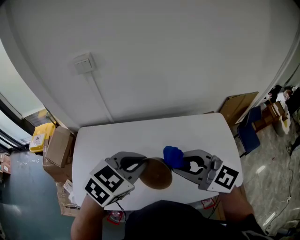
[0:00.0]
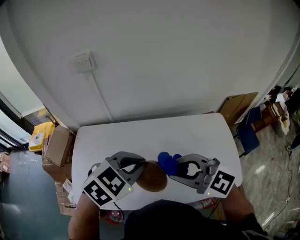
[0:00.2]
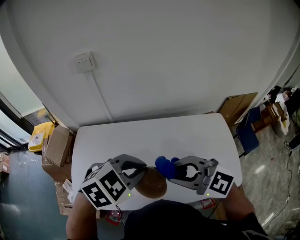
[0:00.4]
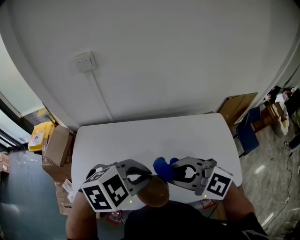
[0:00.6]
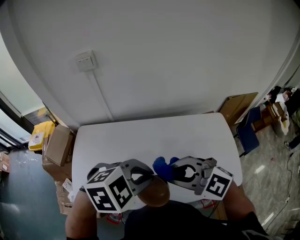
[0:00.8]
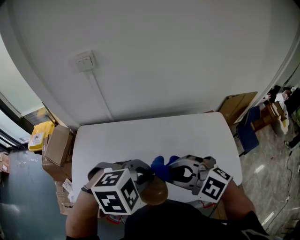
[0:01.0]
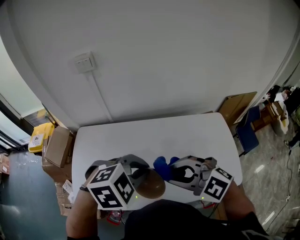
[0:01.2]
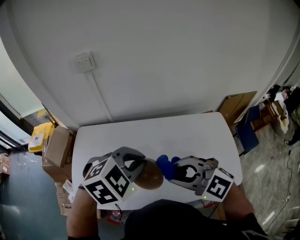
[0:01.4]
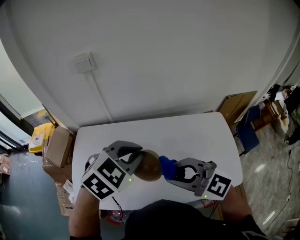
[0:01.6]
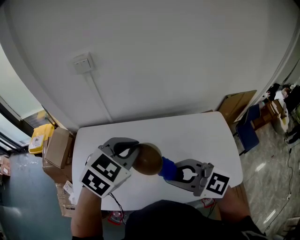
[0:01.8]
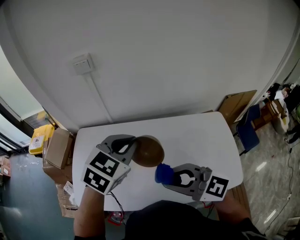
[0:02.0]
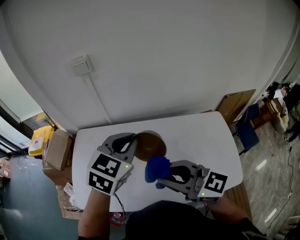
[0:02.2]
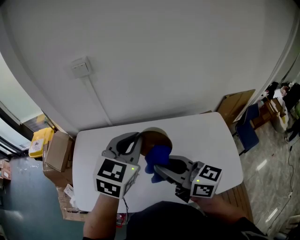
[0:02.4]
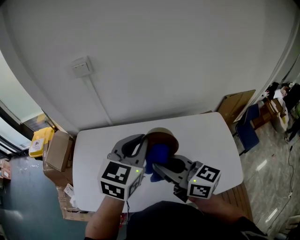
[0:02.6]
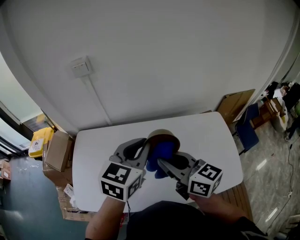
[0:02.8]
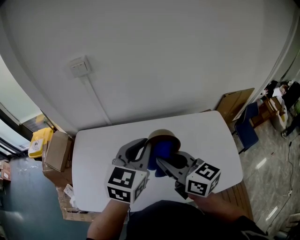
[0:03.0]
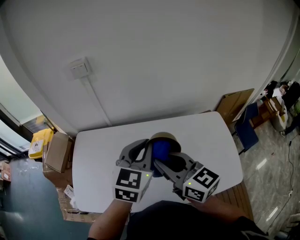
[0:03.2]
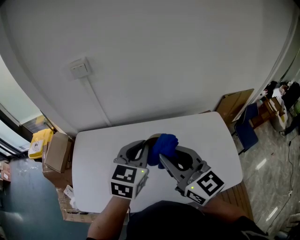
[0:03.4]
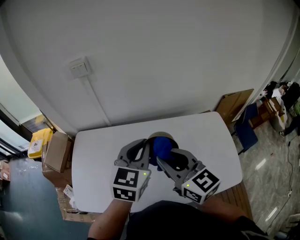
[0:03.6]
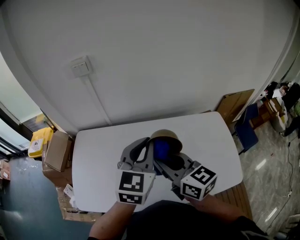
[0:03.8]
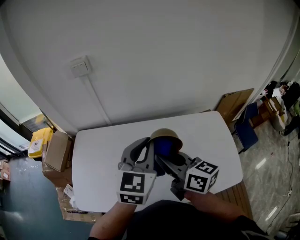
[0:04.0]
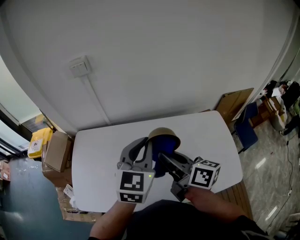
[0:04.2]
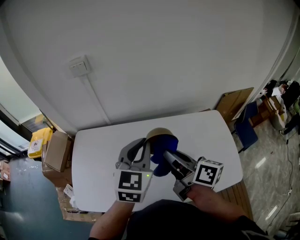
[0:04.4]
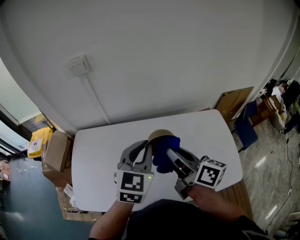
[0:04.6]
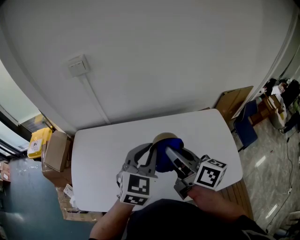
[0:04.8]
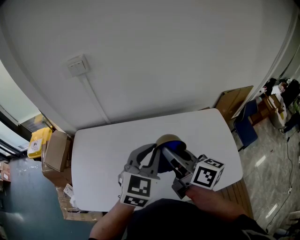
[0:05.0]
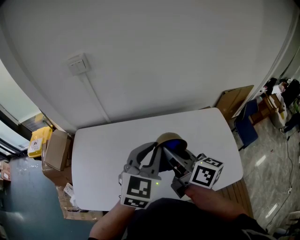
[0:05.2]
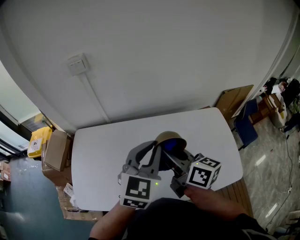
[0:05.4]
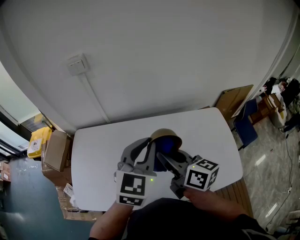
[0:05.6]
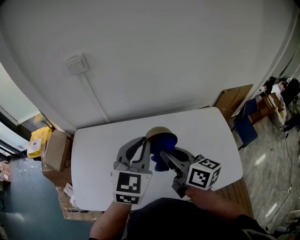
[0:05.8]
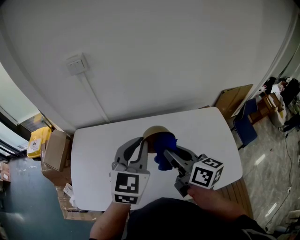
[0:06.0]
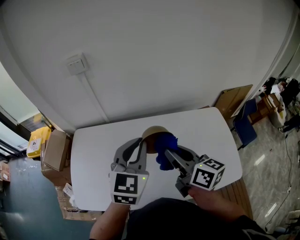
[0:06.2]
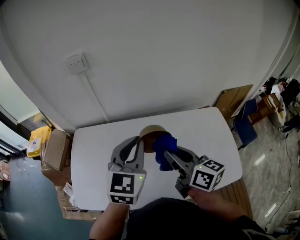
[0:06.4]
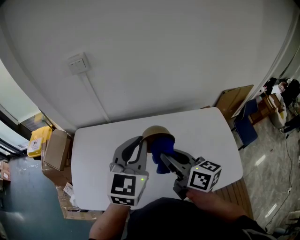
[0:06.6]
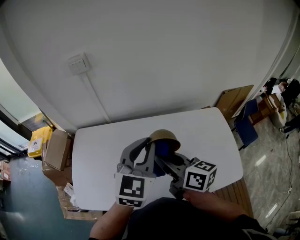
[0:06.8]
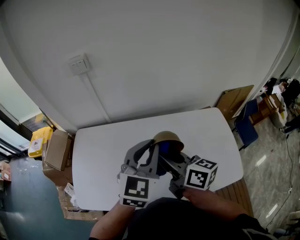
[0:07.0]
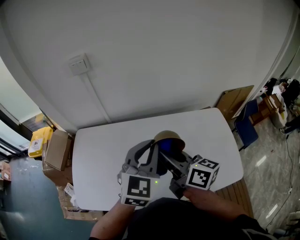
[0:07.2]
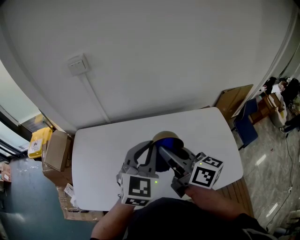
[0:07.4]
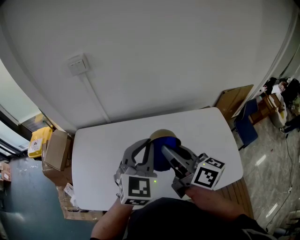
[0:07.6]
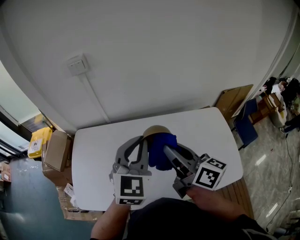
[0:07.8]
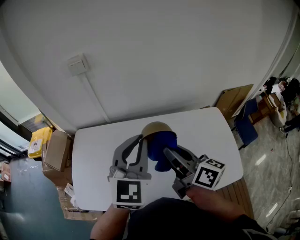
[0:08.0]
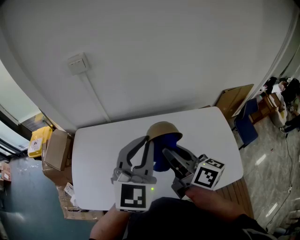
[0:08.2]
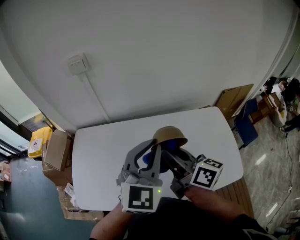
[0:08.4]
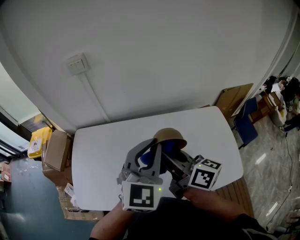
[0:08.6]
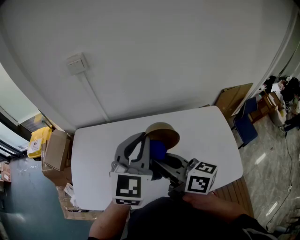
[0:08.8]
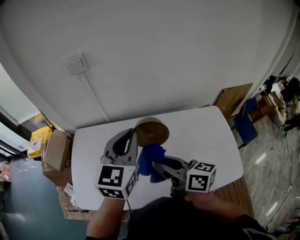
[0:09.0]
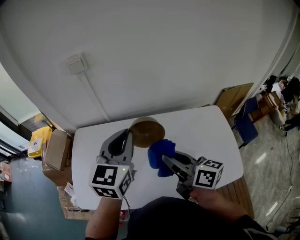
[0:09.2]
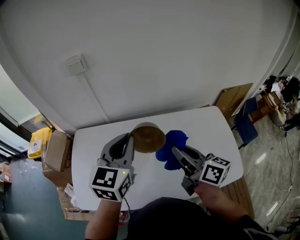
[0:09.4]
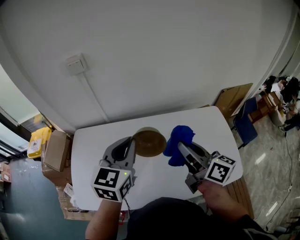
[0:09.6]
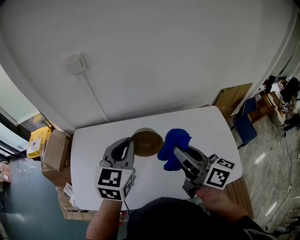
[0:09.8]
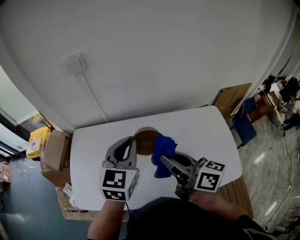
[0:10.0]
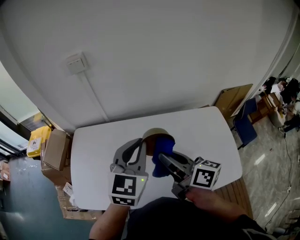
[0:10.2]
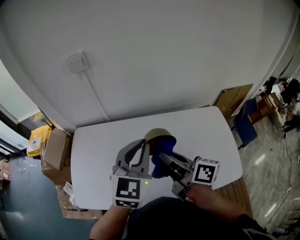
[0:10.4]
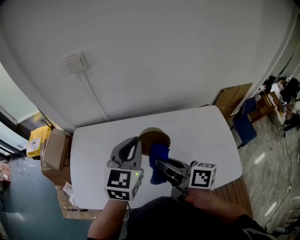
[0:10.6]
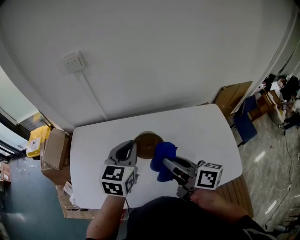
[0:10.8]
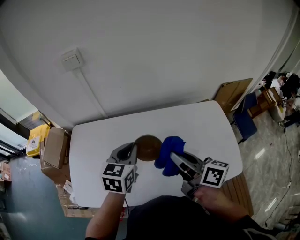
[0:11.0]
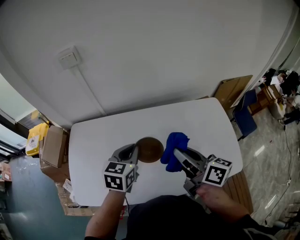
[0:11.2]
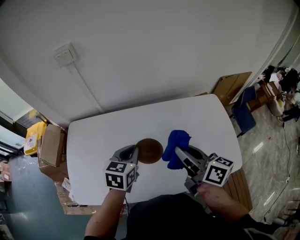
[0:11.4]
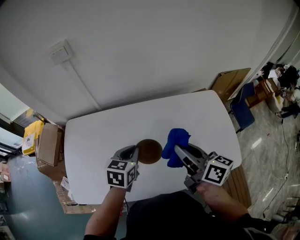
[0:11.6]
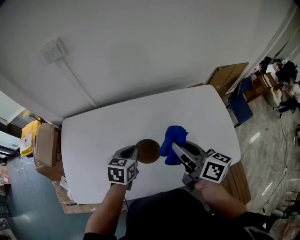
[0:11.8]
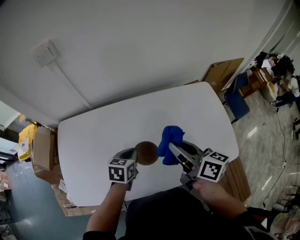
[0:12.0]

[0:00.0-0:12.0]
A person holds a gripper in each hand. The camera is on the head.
0:00.0 to 0:01.6: The right gripper changes place by roughly 5 cm.
0:01.6 to 0:03.0: The right gripper goes some 10 cm forward, and twists about 40 degrees clockwise, seen from behind, while the left gripper rotates some 40 degrees.
0:03.0 to 0:04.4: The right gripper turns by some 30 degrees.
0:04.4 to 0:07.6: There are only small adjustments of the grippers.
0:07.6 to 0:09.0: The right gripper shifts by roughly 5 cm; the left gripper changes place by roughly 5 cm.
0:09.0 to 0:10.4: The right gripper goes to the right and returns, roughly 10 cm each way.
0:10.4 to 0:12.0: The right gripper moves to the right and downward, roughly 10 cm. Meanwhile the left gripper shifts approximately 25 cm downward, and points its fingers approximately 30 degrees further downward.

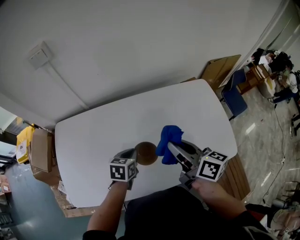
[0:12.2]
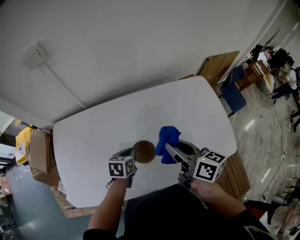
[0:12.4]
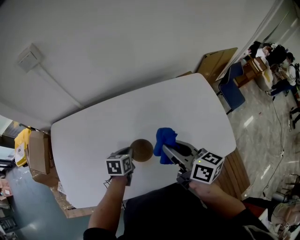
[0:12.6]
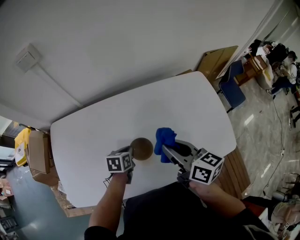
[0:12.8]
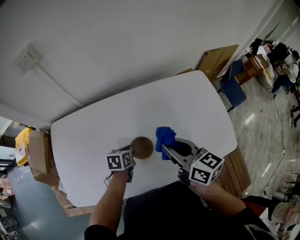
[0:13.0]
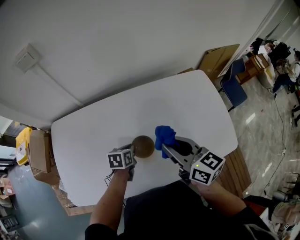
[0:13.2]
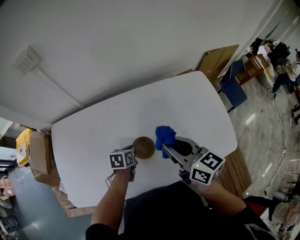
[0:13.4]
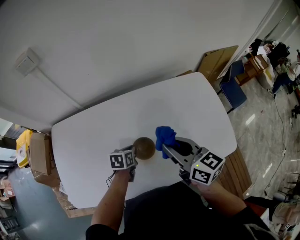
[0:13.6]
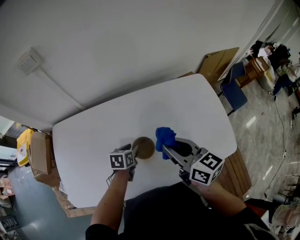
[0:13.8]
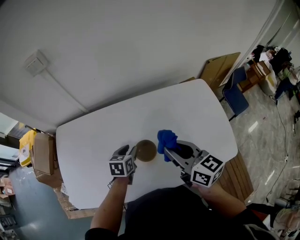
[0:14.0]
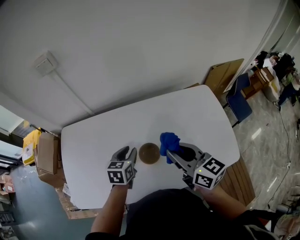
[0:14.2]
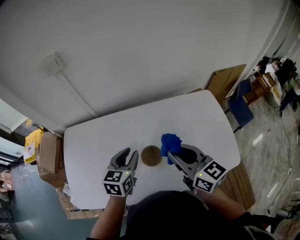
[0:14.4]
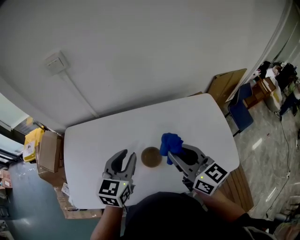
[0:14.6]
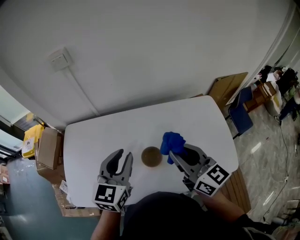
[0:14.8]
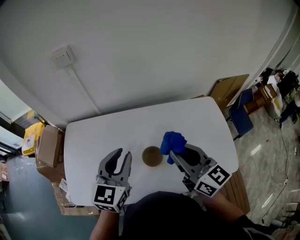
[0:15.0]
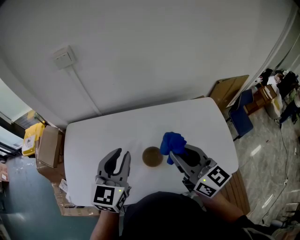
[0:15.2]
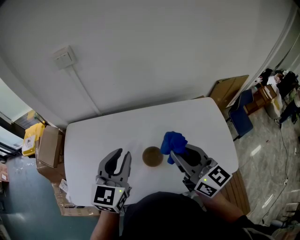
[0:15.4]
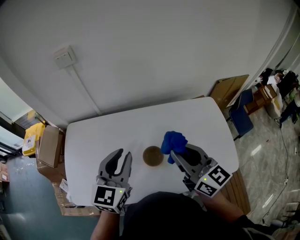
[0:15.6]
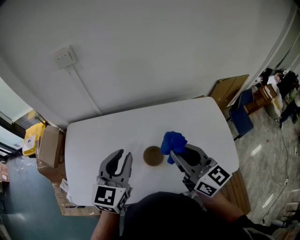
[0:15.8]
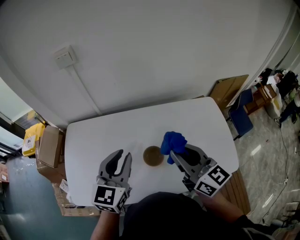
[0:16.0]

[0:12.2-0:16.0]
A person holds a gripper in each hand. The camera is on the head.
0:12.2 to 0:13.4: The left gripper moves downward, approximately 5 cm.
0:13.4 to 0:14.8: The left gripper heads upward, covering about 30 cm, angles its fingers upward, by some 40 degrees, and opens; the right gripper goes roughly 10 cm upward.
0:14.8 to 0:16.0: The grippers make only small movements.

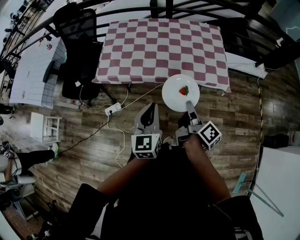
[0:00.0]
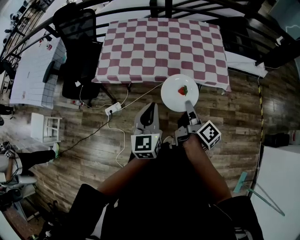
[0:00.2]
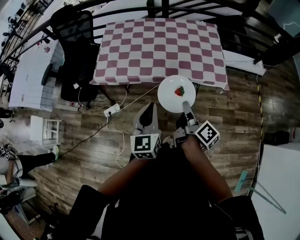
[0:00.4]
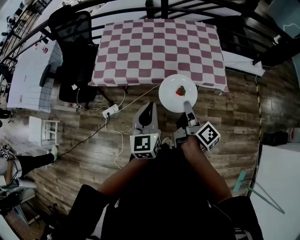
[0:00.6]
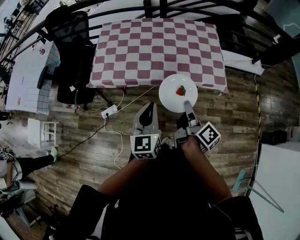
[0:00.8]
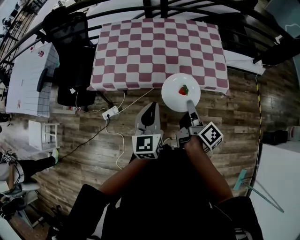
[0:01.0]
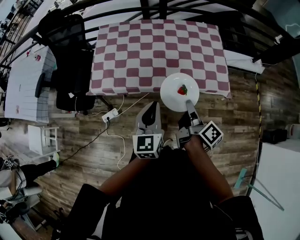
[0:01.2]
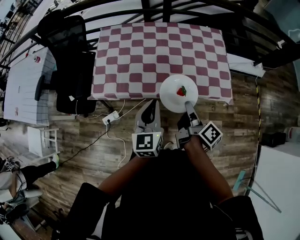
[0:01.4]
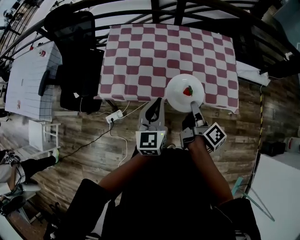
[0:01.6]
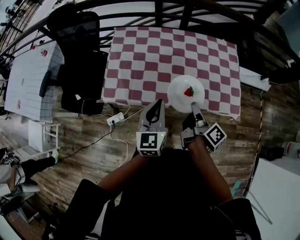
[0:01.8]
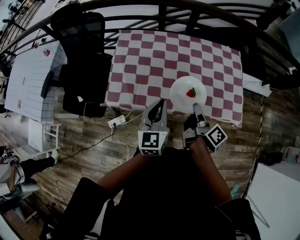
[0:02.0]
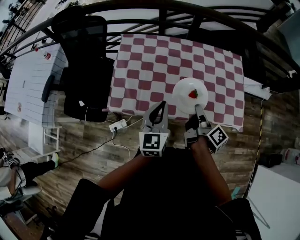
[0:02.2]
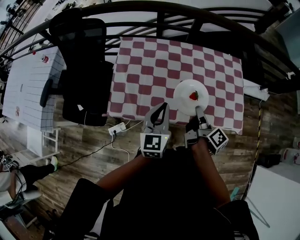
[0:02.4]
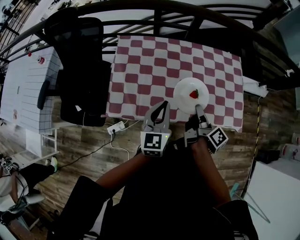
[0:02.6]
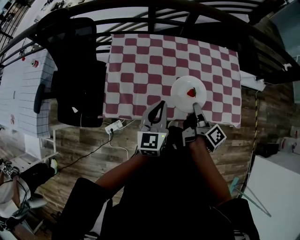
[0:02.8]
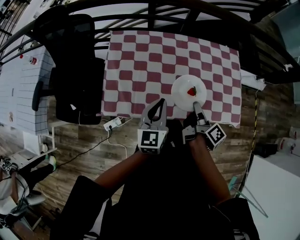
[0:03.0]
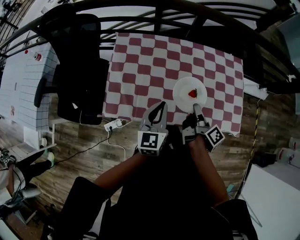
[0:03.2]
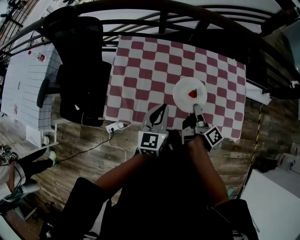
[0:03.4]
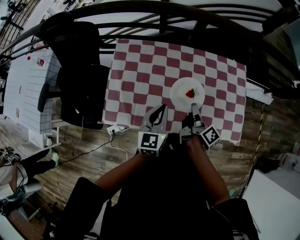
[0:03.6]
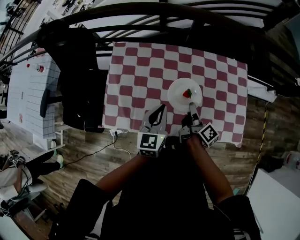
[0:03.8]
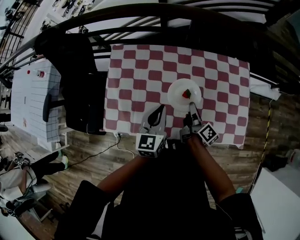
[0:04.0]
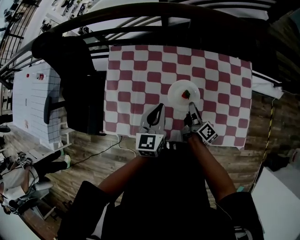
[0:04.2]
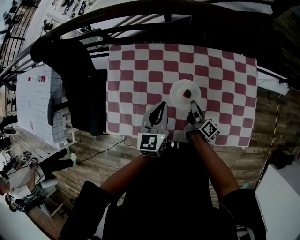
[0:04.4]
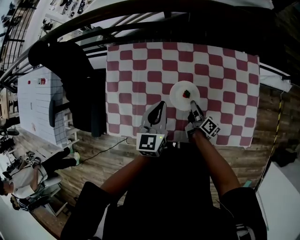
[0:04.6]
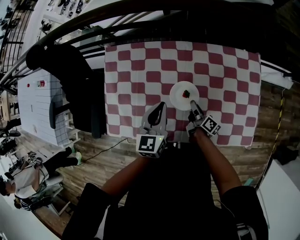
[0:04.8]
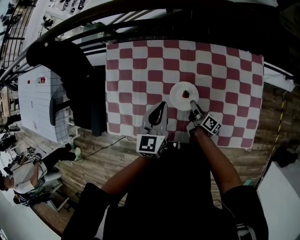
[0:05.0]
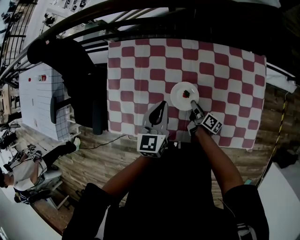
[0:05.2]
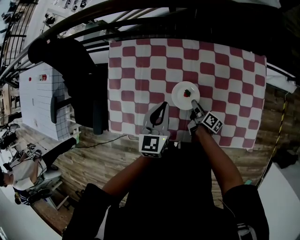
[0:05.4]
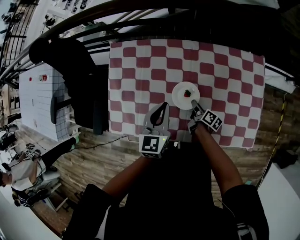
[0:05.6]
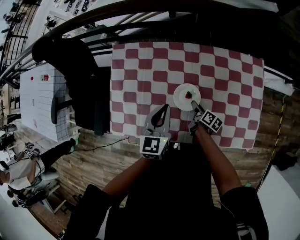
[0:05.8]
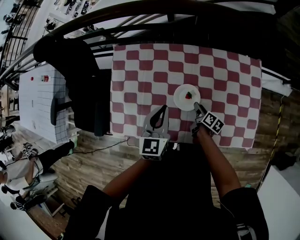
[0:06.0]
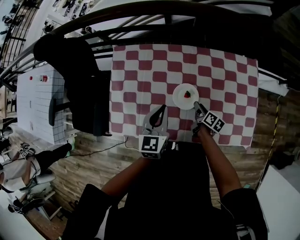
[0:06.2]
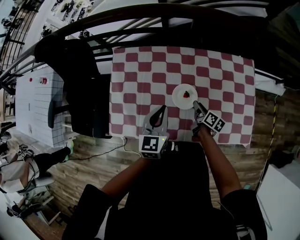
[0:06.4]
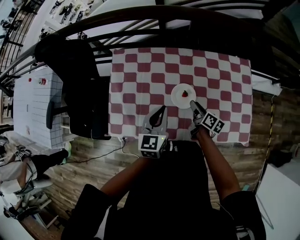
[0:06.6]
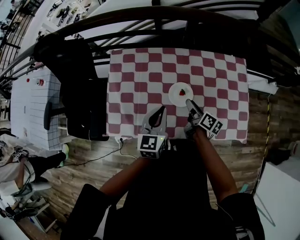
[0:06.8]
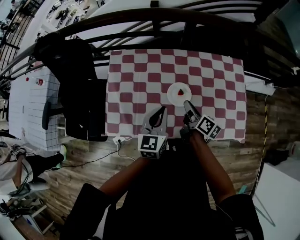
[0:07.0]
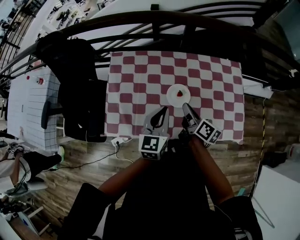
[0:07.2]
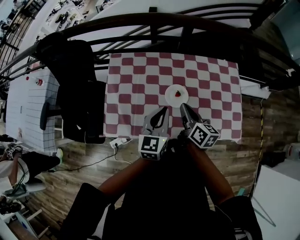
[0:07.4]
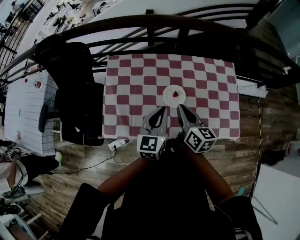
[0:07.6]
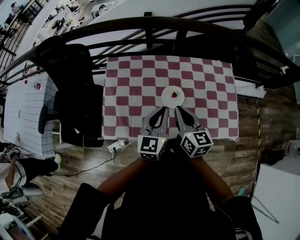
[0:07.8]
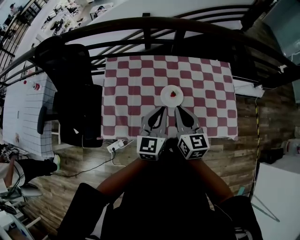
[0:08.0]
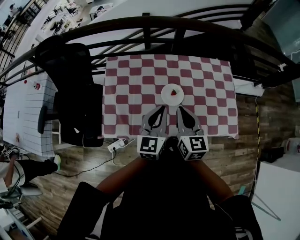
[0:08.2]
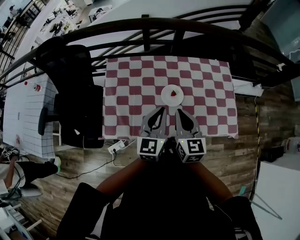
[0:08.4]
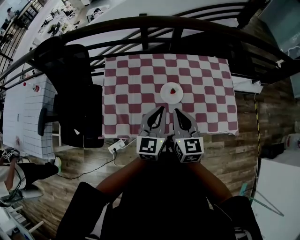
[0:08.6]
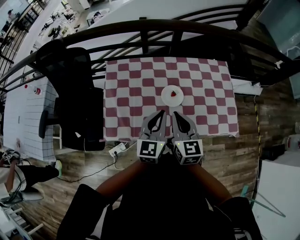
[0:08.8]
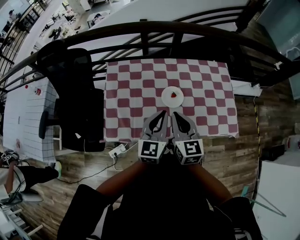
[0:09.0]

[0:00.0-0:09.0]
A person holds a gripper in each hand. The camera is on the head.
0:00.0 to 0:01.6: Both grippers move forward, some 20 cm.
0:01.6 to 0:03.0: Both grippers travel together forward and to the left, roughly 15 cm.
0:03.0 to 0:04.4: The right gripper travels forward and downward by approximately 25 cm. Meanwhile the left gripper moves forward, some 15 cm.
0:04.4 to 0:06.0: The right gripper moves downward, some 10 cm, swivels roughly 30 degrees, and opens its fingers.
0:06.0 to 0:07.6: The right gripper moves upward, about 30 cm, changes its angle by approximately 40 degrees, and closes up. The left gripper travels backward and upward by about 10 cm.
0:07.6 to 0:09.0: The right gripper moves backward, about 5 cm, and rotates about 20 degrees.
